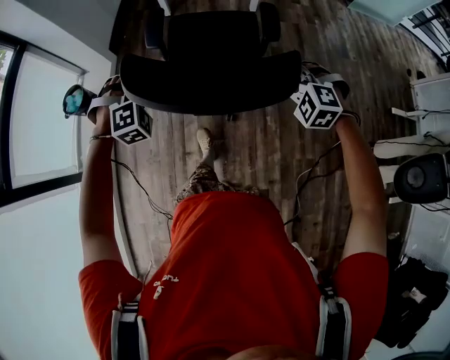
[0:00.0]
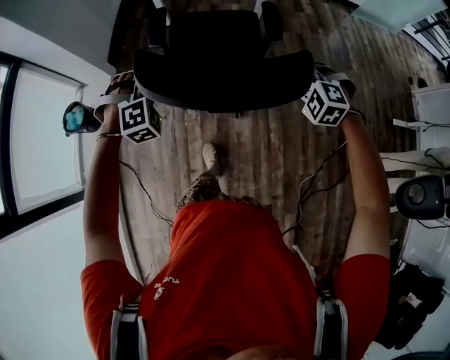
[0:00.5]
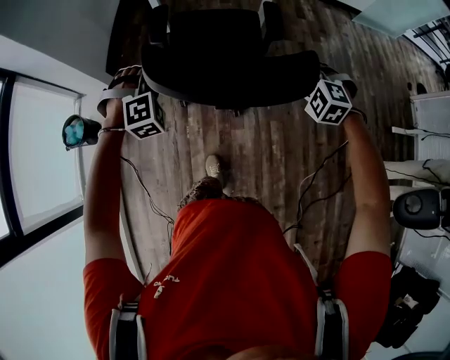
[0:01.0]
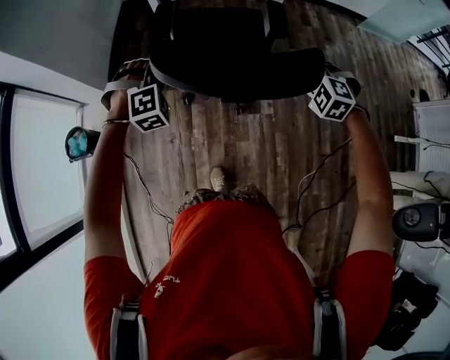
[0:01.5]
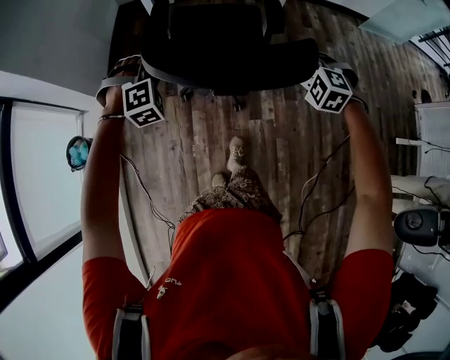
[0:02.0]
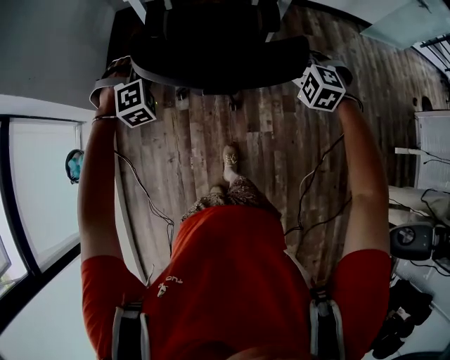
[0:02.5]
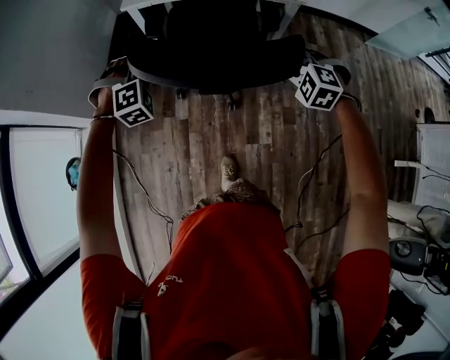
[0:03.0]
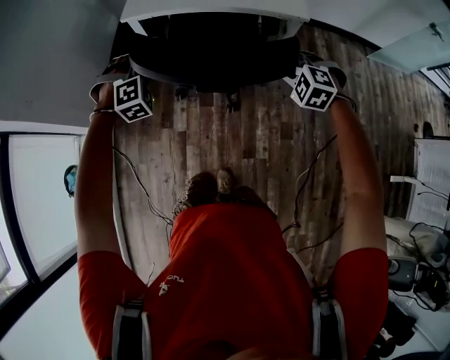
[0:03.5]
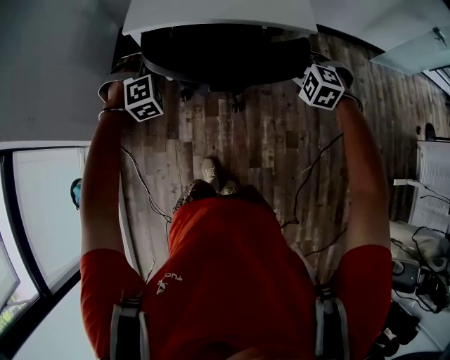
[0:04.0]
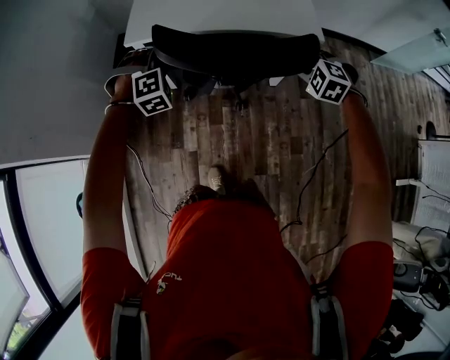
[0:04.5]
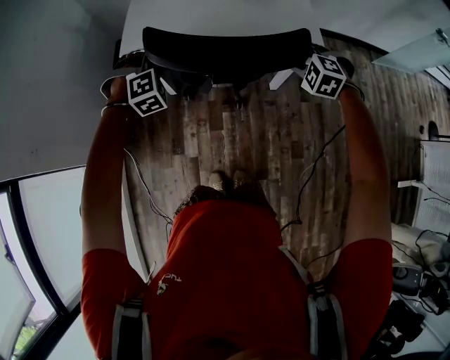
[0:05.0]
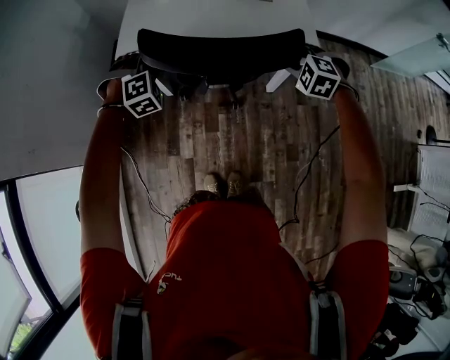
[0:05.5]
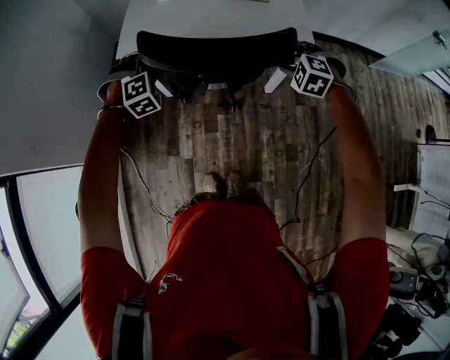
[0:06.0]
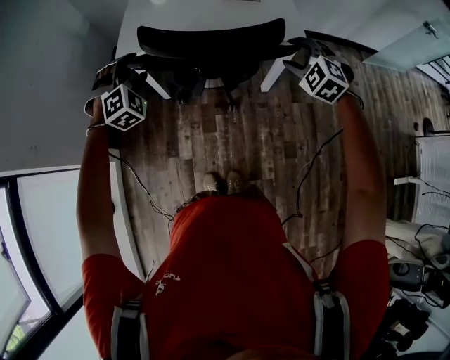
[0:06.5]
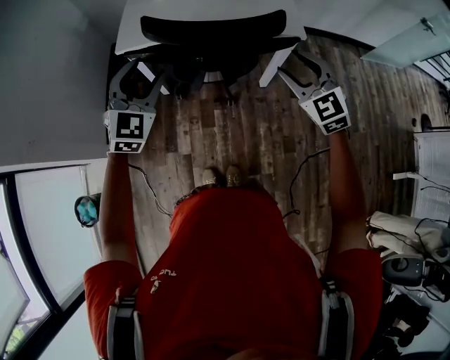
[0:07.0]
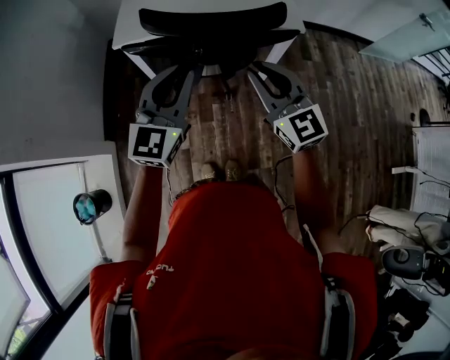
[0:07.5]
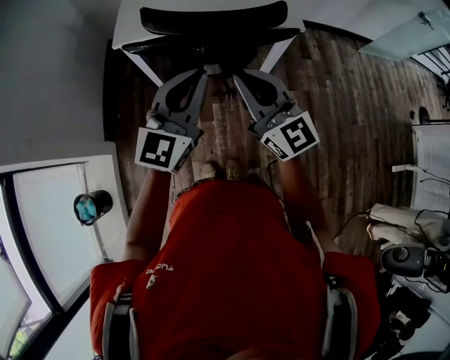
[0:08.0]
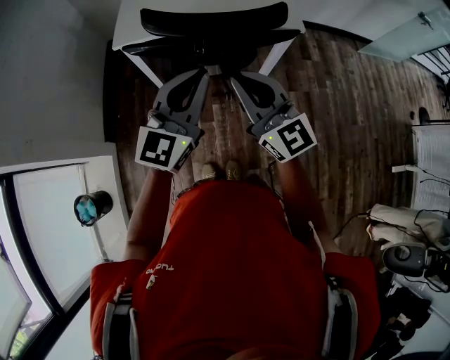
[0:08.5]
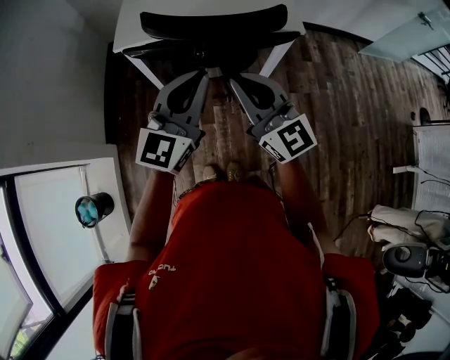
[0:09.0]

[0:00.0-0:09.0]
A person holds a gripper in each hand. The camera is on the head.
0:00.0 to 0:02.0: The two grippers travel together, forward, some 40 cm.
0:02.0 to 0:04.5: Both grippers are carried forward, approximately 40 cm.
0:04.5 to 0:07.0: The two grippers go some 15 cm upward and backward. The left gripper rotates roughly 50 degrees, and opens its fingers. Meanwhile the right gripper tips its fingers upward by some 40 degrees, and opens its fingers.
0:07.0 to 0:09.0: The left gripper heads to the right and backward, covering about 15 cm, changes its angle by about 40 degrees, and closes, while the right gripper shifts about 15 cm to the left, backward and upward, changes its angle by some 40 degrees, and closes.

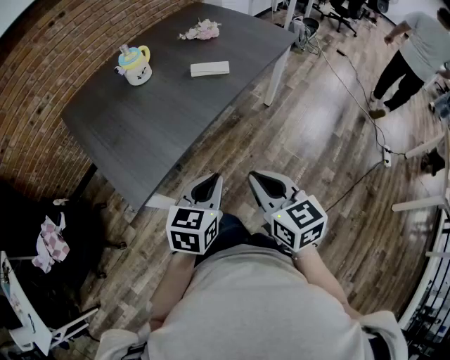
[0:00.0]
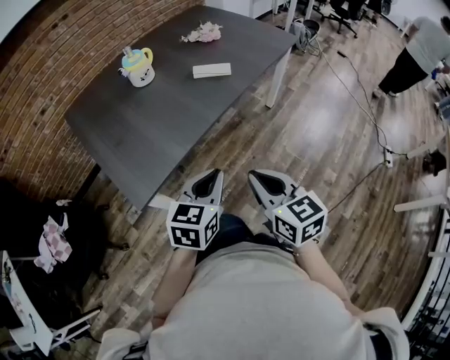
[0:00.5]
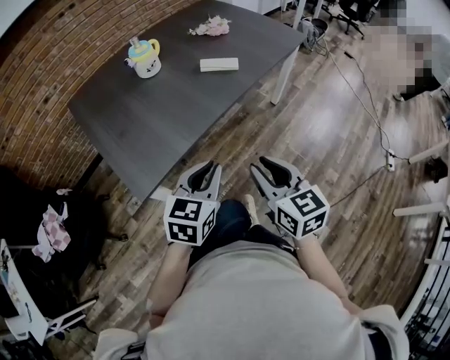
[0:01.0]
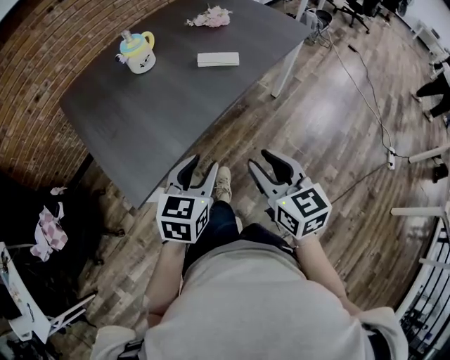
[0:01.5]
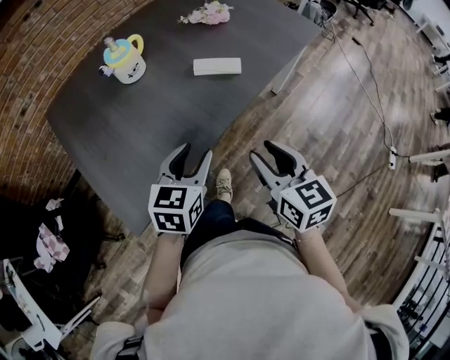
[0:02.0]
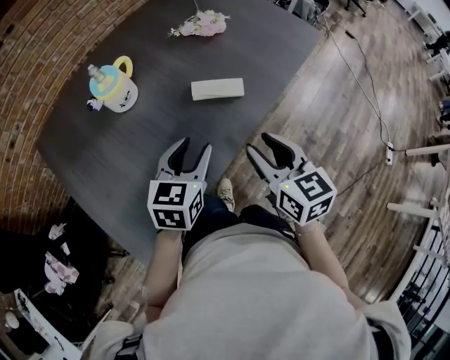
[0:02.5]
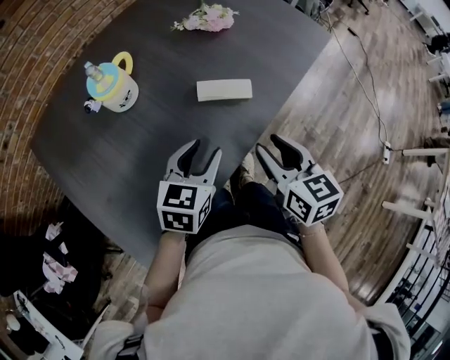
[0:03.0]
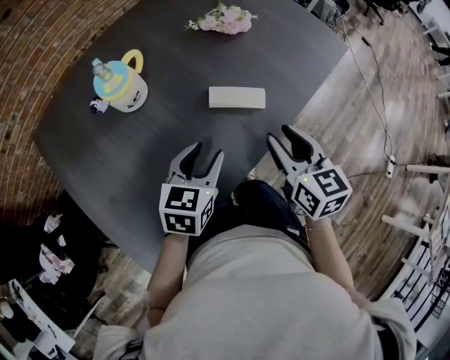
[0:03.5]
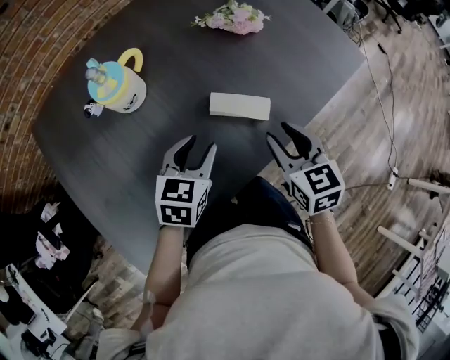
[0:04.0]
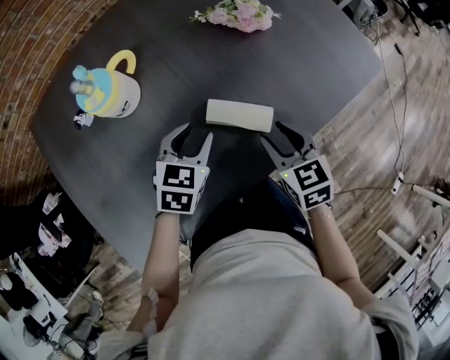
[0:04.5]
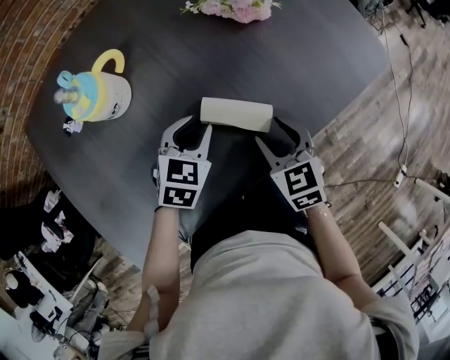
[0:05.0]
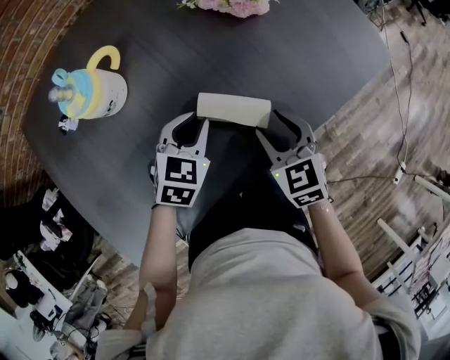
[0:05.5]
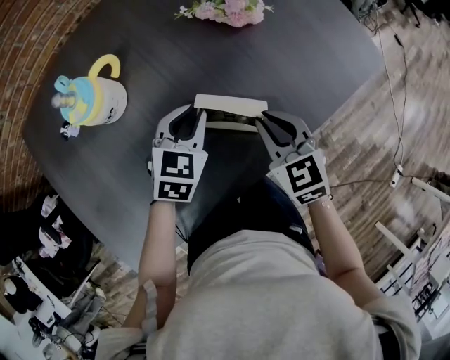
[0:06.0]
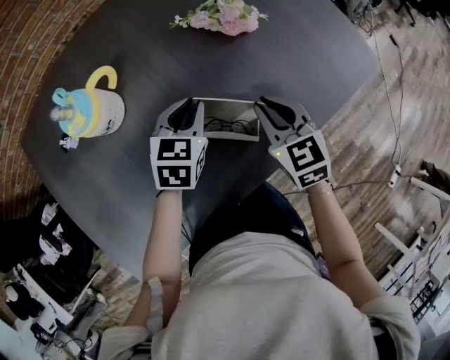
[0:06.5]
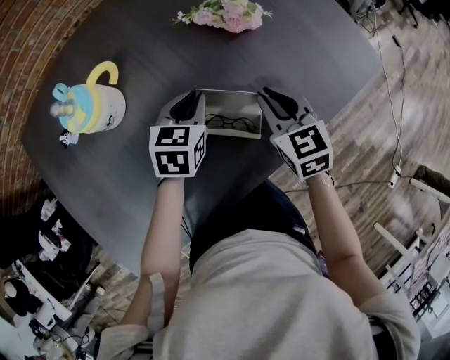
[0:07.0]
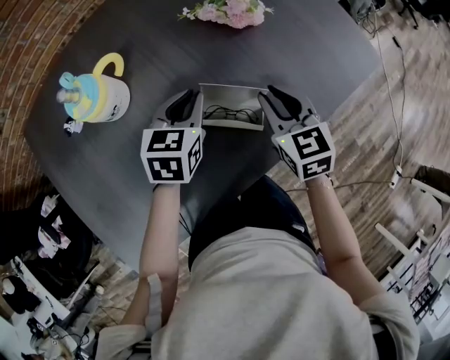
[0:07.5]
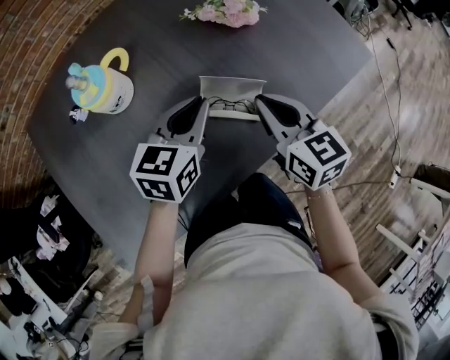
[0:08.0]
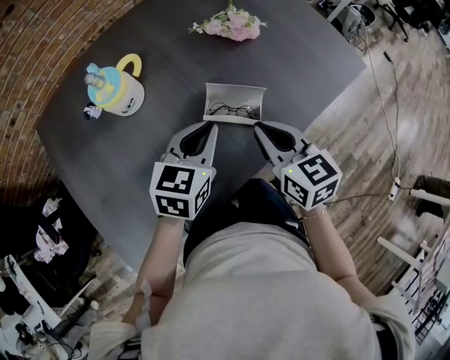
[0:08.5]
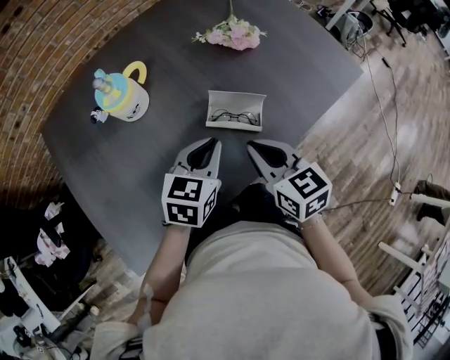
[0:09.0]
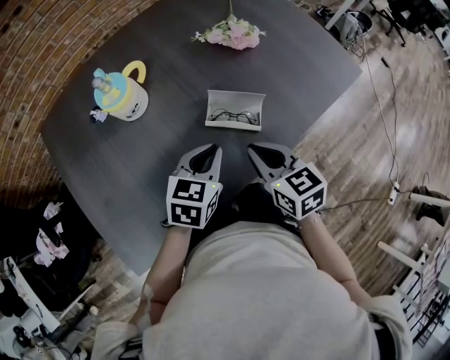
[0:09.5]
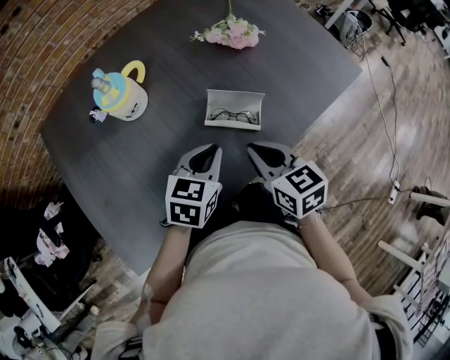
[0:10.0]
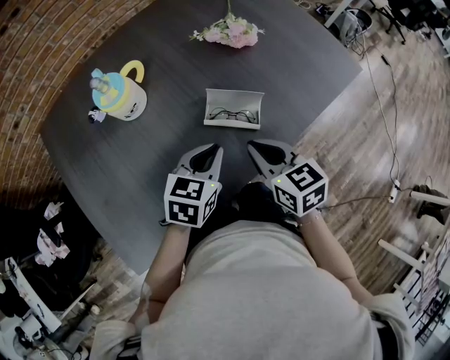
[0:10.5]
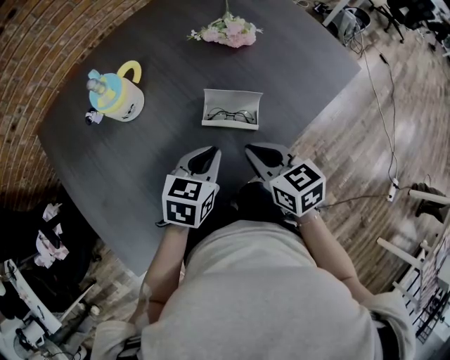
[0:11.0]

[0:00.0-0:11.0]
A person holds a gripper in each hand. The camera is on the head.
0:00.0 to 0:02.0: Both grippers travel together forward, roughly 20 cm. The right gripper opens. The left gripper opens up.
0:02.0 to 0:03.5: Both grippers move forward, roughly 20 cm.
0:03.5 to 0:05.5: The two grippers go some 15 cm forward and downward. The left gripper closes. Meanwhile the right gripper rotates about 30 degrees.
0:05.5 to 0:07.5: Both grippers travel together forward, approximately 5 cm. The right gripper closes its fingers.
0:07.5 to 0:09.0: The right gripper moves backward, to the left and upward, approximately 15 cm. The left gripper travels backward by approximately 15 cm.
0:09.0 to 0:11.0: The grippers make only small movements.

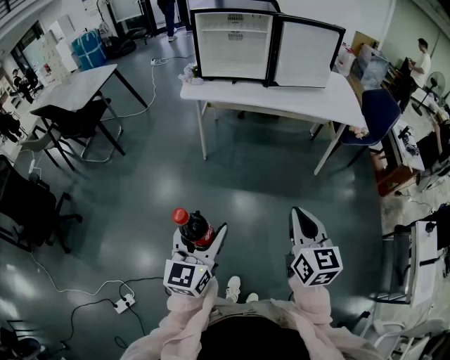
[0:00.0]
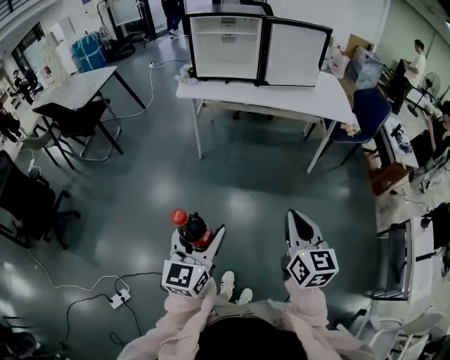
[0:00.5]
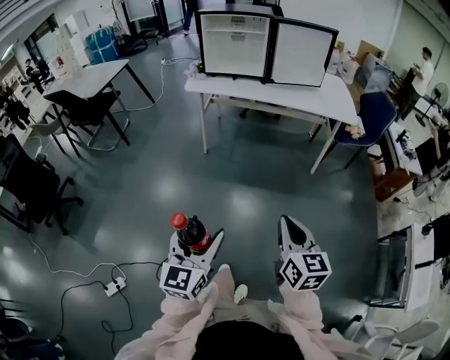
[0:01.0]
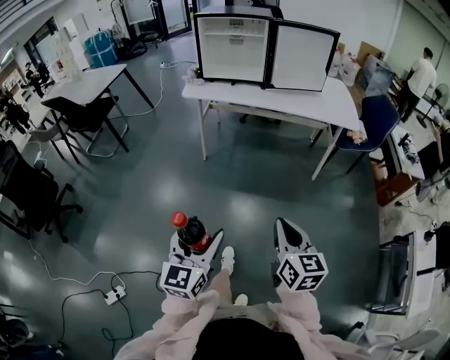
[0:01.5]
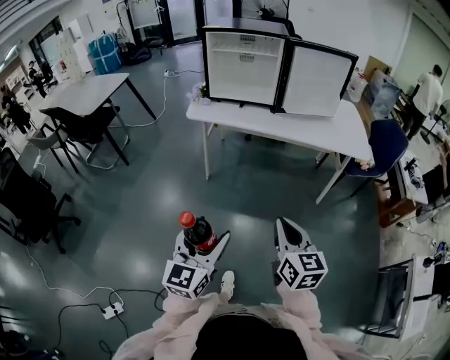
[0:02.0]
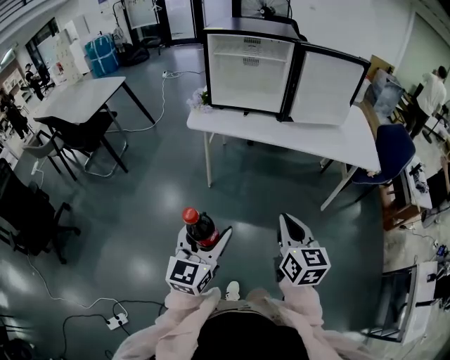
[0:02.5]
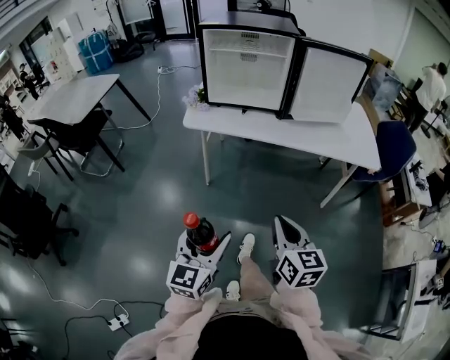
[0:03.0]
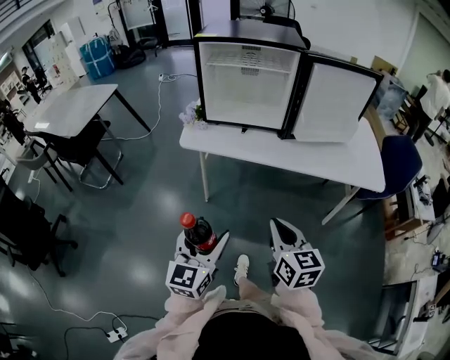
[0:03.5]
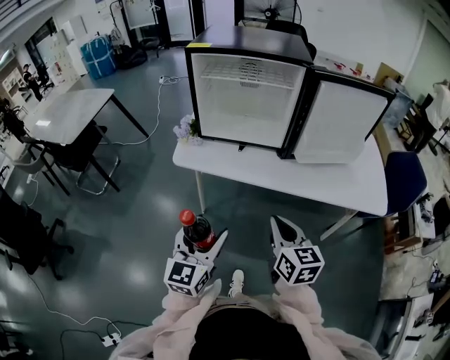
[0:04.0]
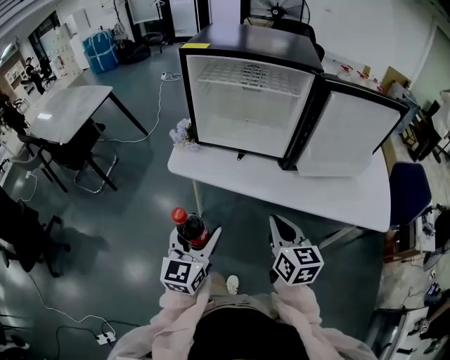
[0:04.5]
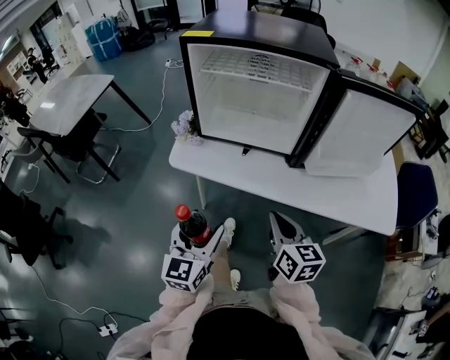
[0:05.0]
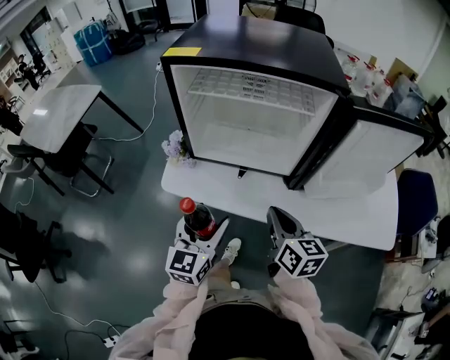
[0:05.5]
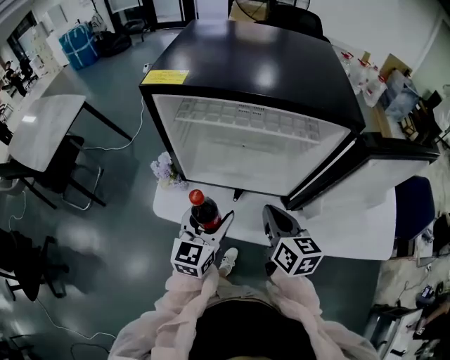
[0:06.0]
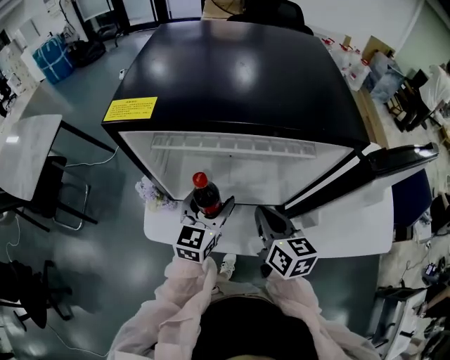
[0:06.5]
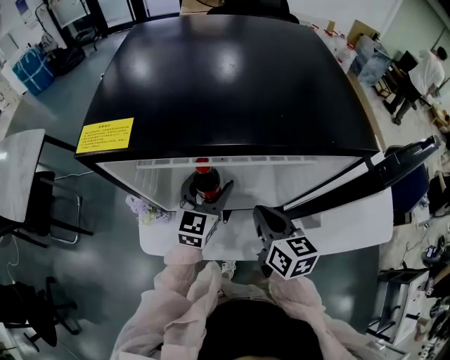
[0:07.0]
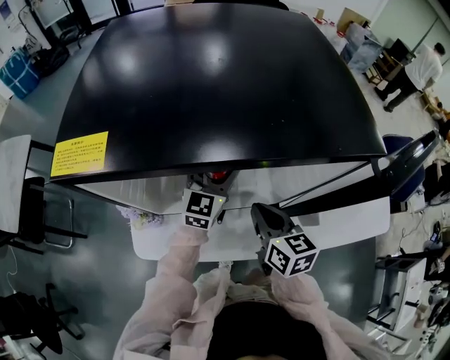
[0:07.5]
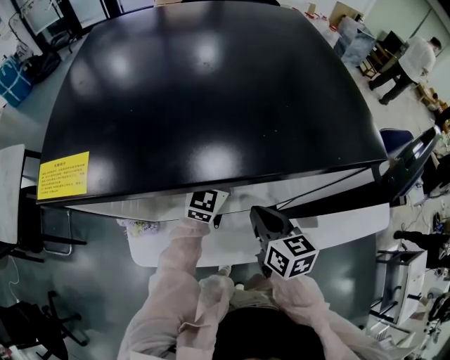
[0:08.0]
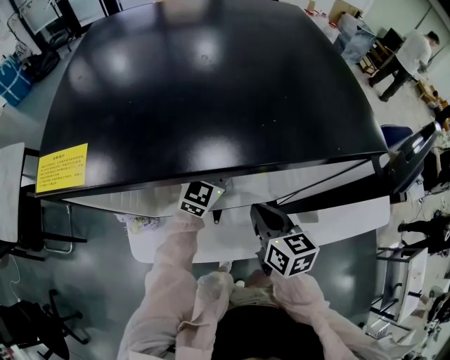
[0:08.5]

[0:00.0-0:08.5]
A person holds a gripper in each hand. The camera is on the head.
0:00.0 to 0:02.0: The two grippers go approximately 10 cm forward.
0:02.0 to 0:04.0: Both grippers move forward, some 35 cm.
0:04.0 to 0:06.5: The grippers both shift forward by approximately 40 cm.
0:06.5 to 0:08.5: The left gripper travels forward and to the right by about 20 cm, and turns by some 30 degrees. The right gripper goes some 5 cm forward.
